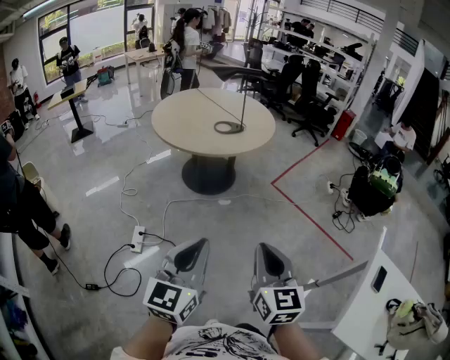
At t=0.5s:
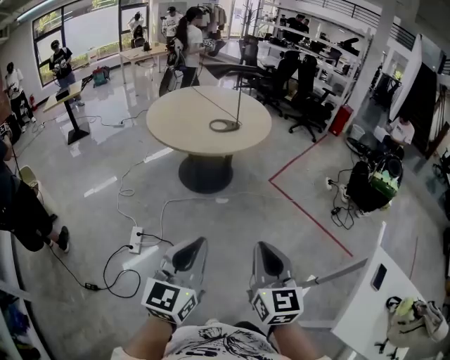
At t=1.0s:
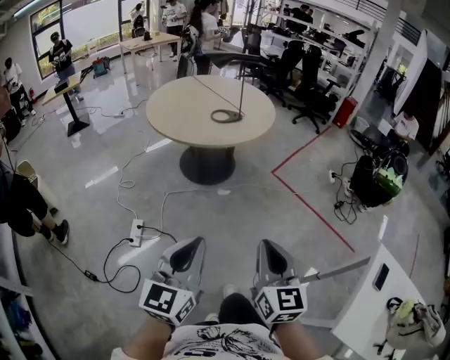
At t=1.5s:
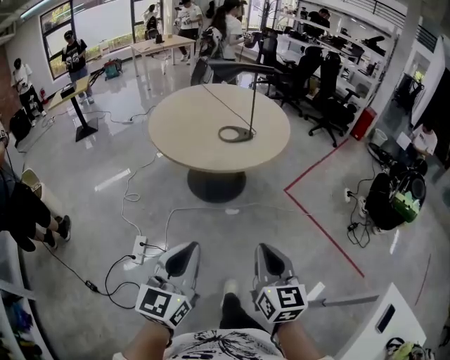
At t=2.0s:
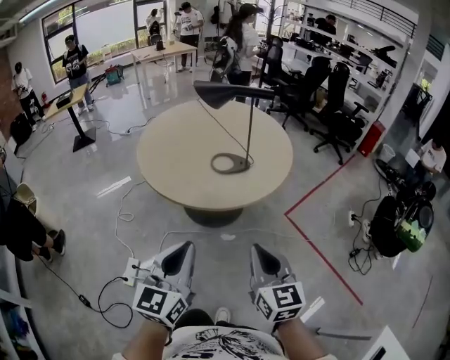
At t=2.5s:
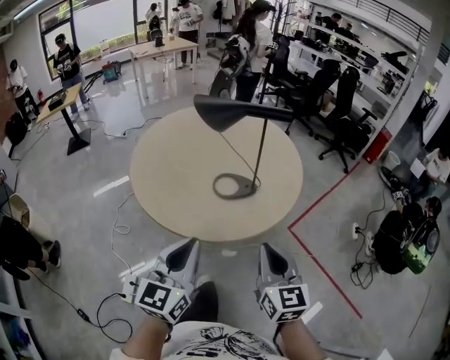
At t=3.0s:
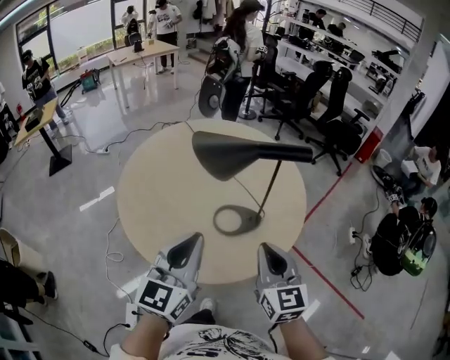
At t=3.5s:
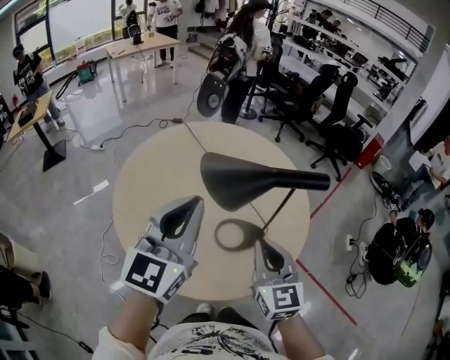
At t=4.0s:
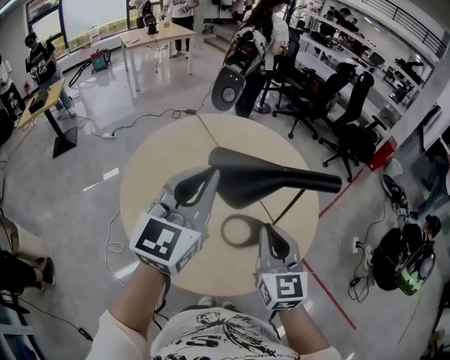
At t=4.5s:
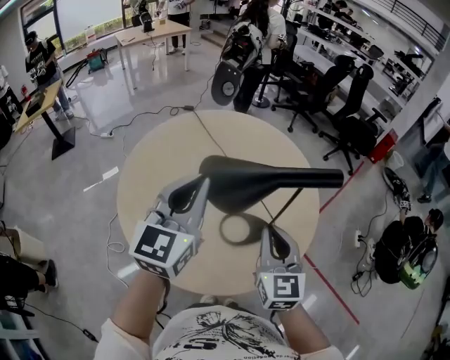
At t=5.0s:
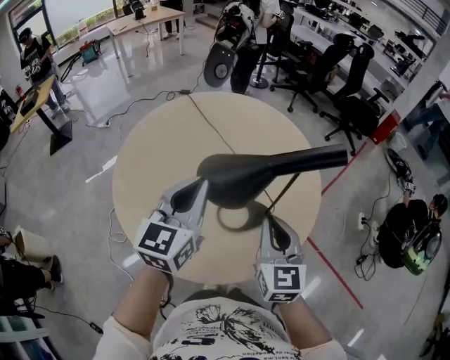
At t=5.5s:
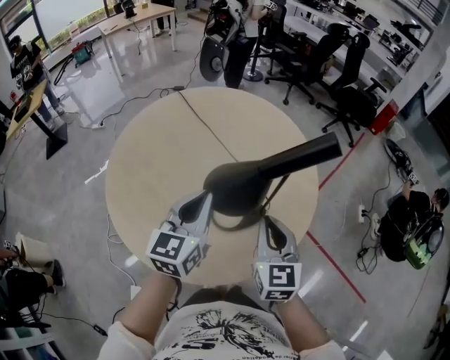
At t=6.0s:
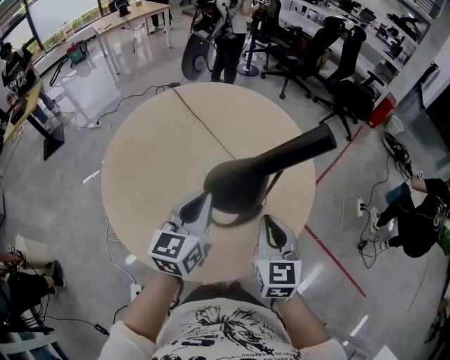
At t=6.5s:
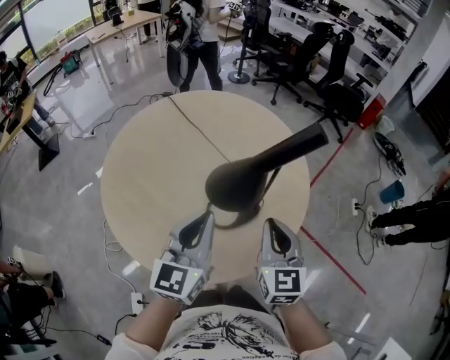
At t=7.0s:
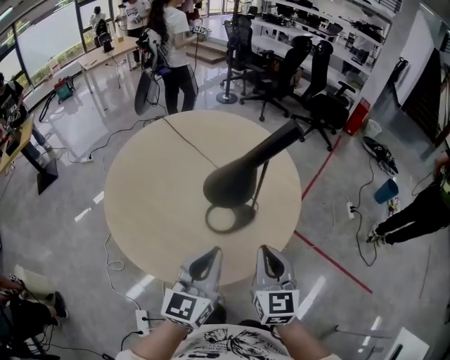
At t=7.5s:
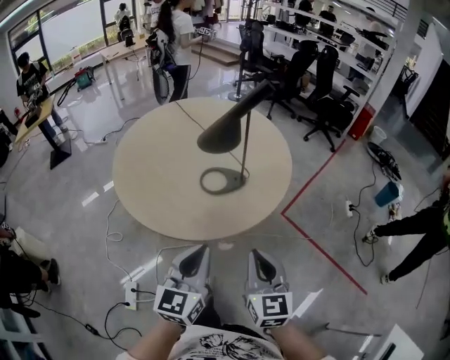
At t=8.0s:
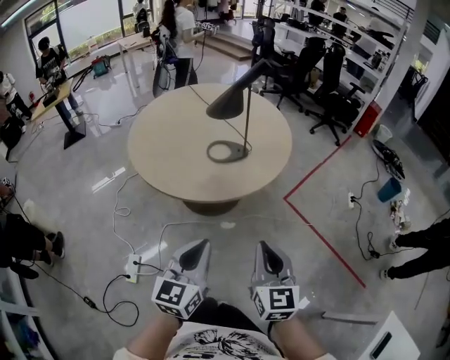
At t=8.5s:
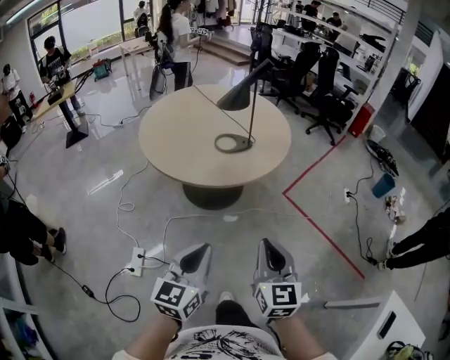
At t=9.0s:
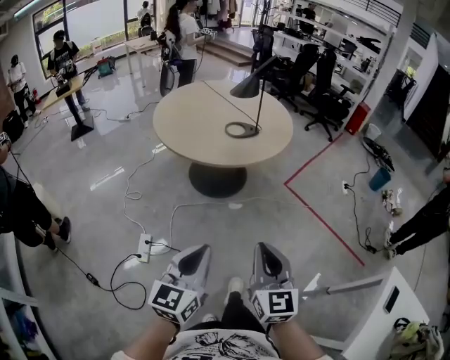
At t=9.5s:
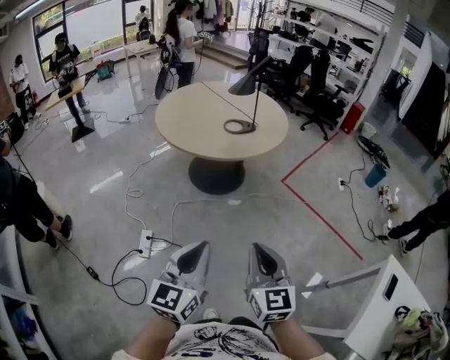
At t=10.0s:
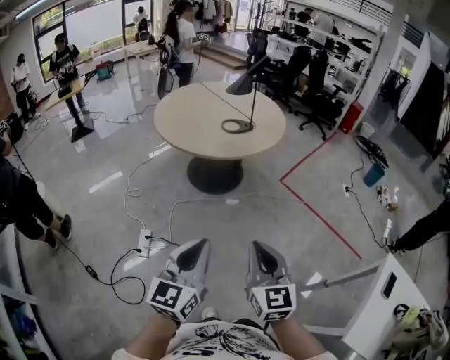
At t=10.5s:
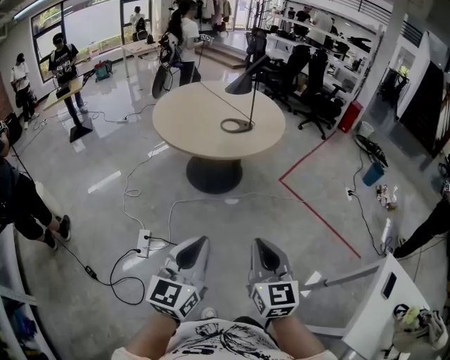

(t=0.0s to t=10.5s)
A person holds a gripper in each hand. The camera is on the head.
t=0.0s - t=2.0s: The grippers both shift forward by about 35 cm.
t=2.0s - t=4.0s: The grippers both shift forward by some 40 cm.
t=4.0s - t=6.5s: The left gripper heads downward and to the right, covering approximately 15 cm; the right gripper shifts some 5 cm to the right.
t=6.5s - t=8.5s: The two grippers travel together, backward, some 40 cm.
t=8.5s - t=10.5s: The two grippers go some 20 cm backward.

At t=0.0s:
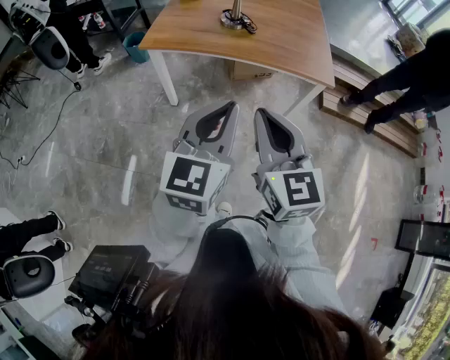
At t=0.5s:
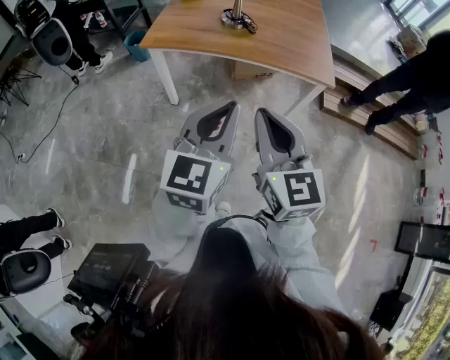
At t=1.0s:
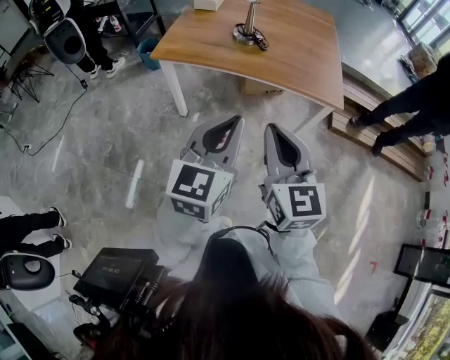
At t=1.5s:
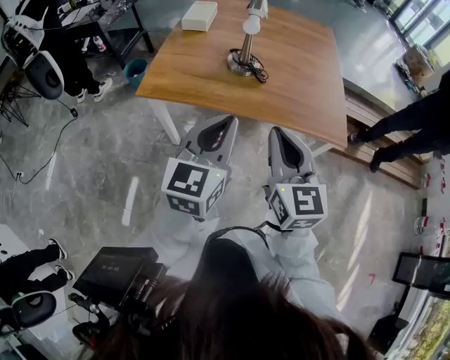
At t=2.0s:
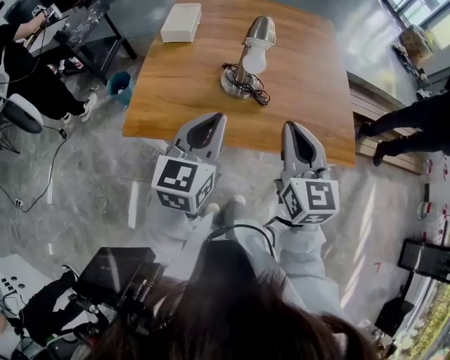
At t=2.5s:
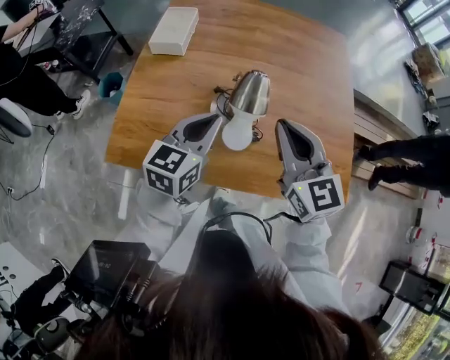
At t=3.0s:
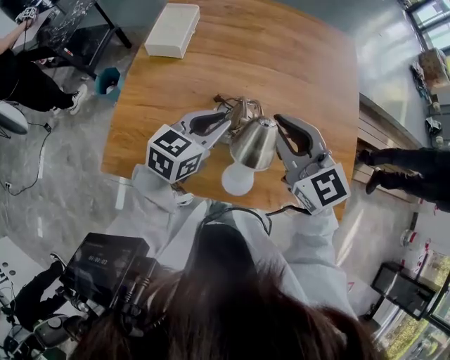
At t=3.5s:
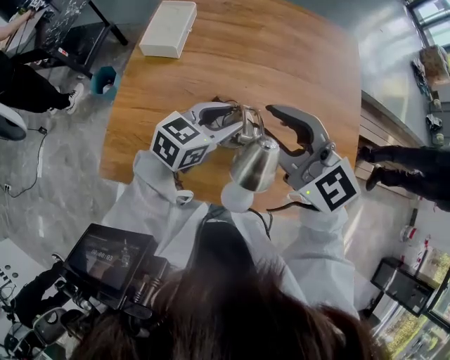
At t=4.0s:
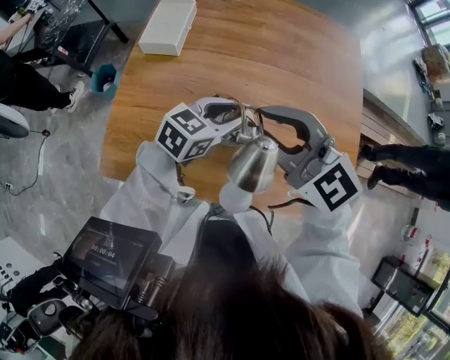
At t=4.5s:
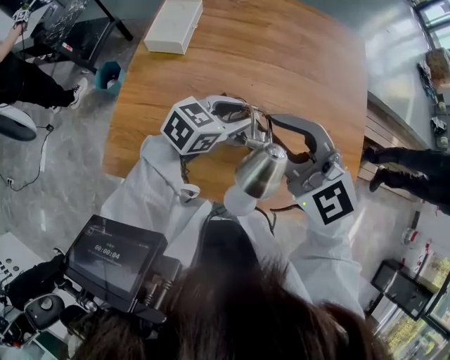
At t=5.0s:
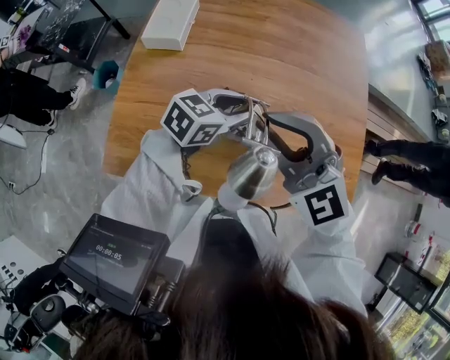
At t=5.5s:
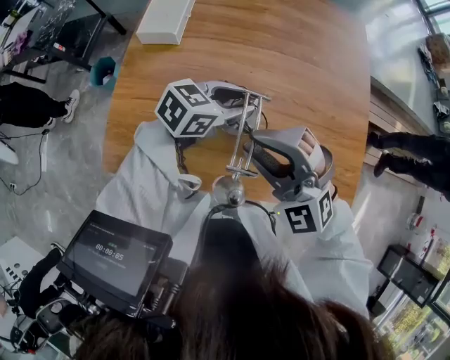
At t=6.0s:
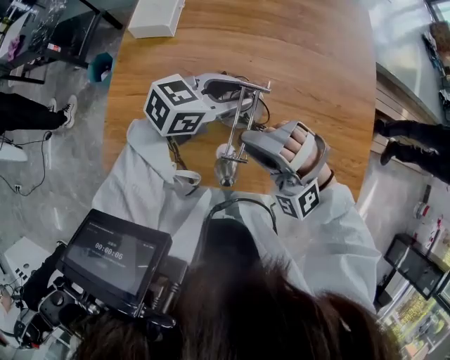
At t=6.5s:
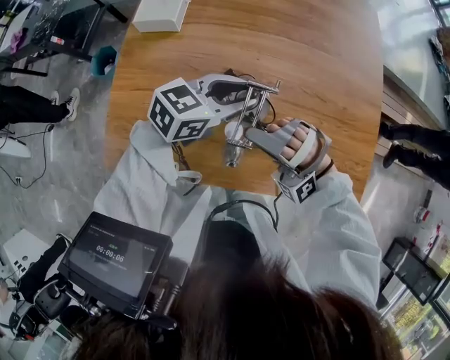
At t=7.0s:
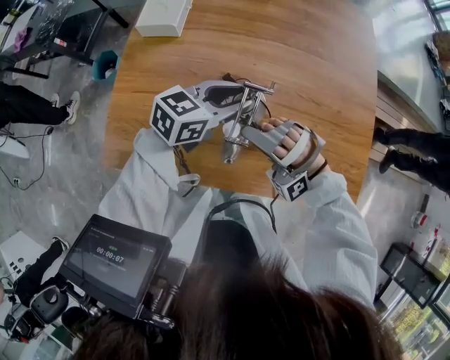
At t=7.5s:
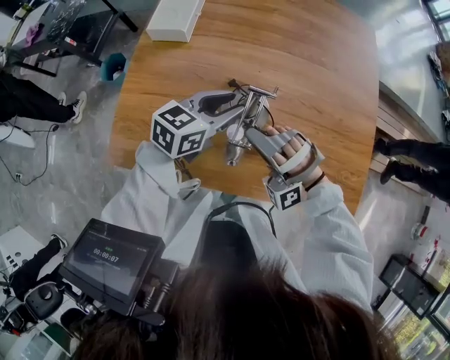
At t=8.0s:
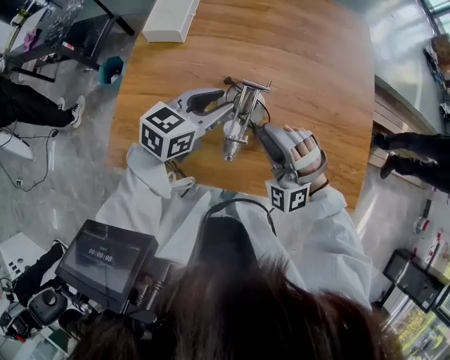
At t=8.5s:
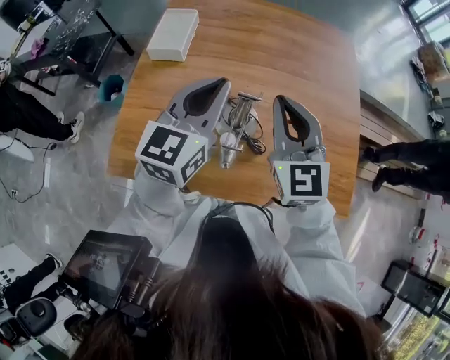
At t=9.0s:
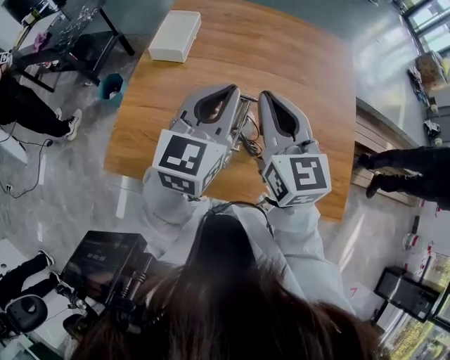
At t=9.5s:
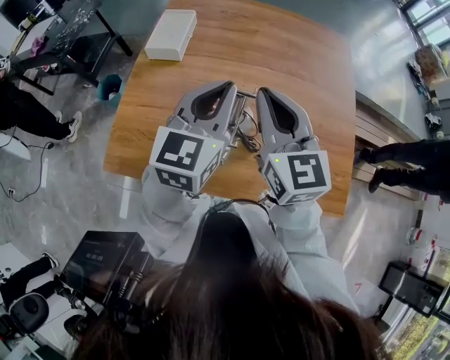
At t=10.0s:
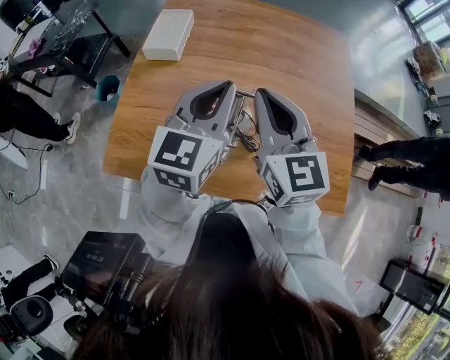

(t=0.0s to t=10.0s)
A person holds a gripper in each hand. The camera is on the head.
t=0.0s - t=2.0s: Both grippers are carried forward, about 50 cm.
t=2.0s - t=4.0s: The left gripper moves forward and downward, approximately 30 cm, swivels roughly 30 degrees, and opens up, while the right gripper moves forward, roughly 25 cm, and changes its angle by roughly 50 degrees.
t=4.0s - t=6.0s: The right gripper goes some 15 cm downward and backward, and twists some 50 degrees counterclockwise, seen from behind.
t=6.0s - t=8.0s: The right gripper moves roughly 5 cm, while the left gripper shifts by about 5 cm.
t=8.0s - t=10.0s: Both grippers move upward, some 15 cm. The right gripper rolls clockwise, seen from behind, by some 70 degrees, and closes; the left gripper turns by roughly 30 degrees, and closes its fingers.

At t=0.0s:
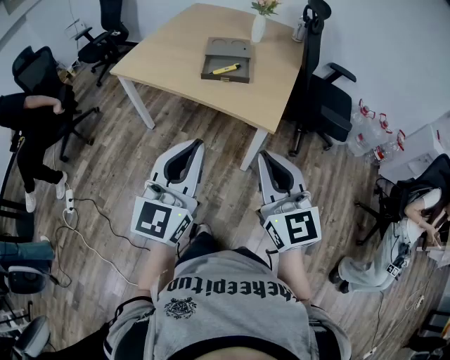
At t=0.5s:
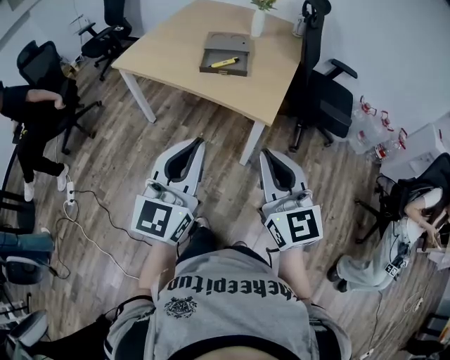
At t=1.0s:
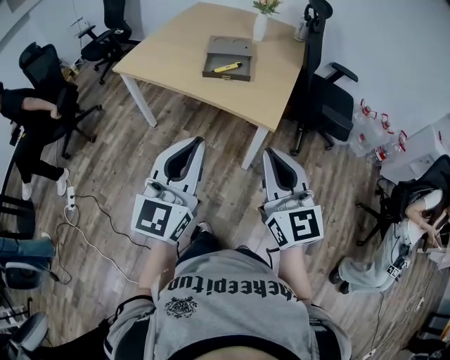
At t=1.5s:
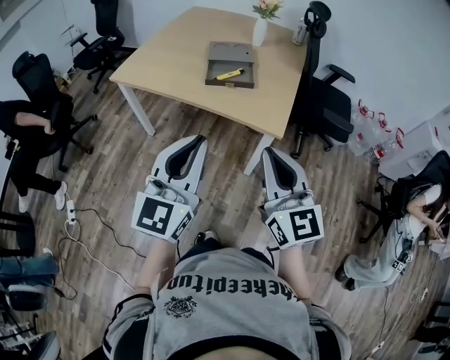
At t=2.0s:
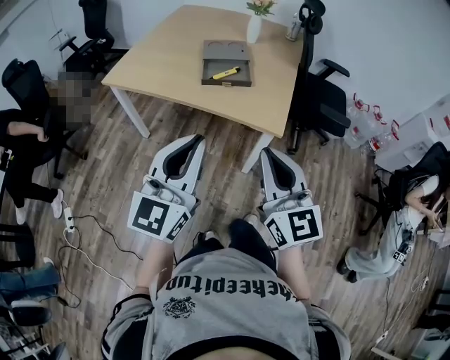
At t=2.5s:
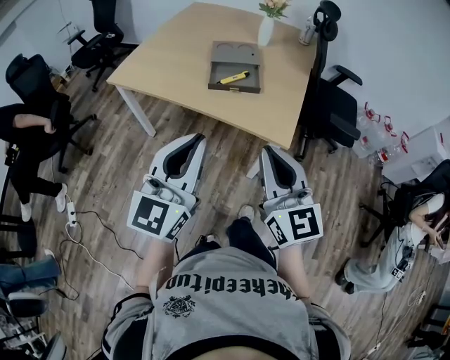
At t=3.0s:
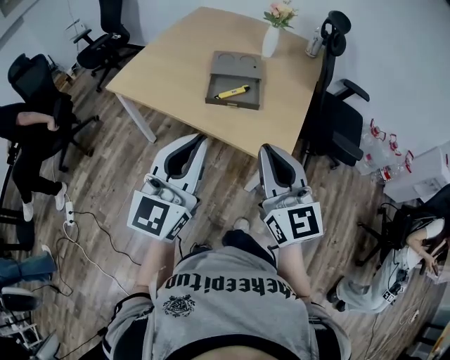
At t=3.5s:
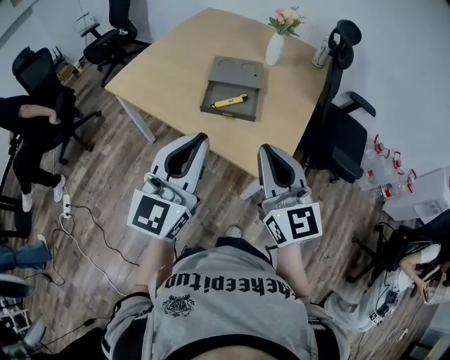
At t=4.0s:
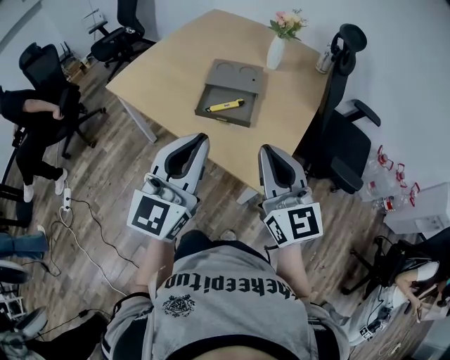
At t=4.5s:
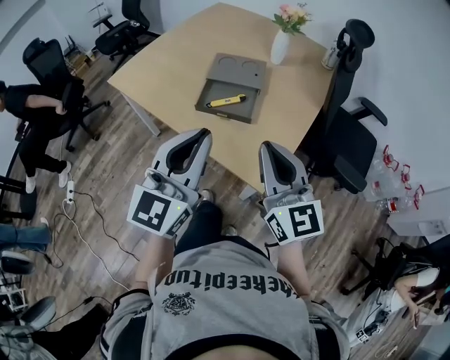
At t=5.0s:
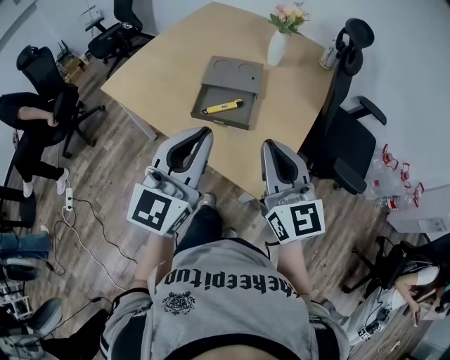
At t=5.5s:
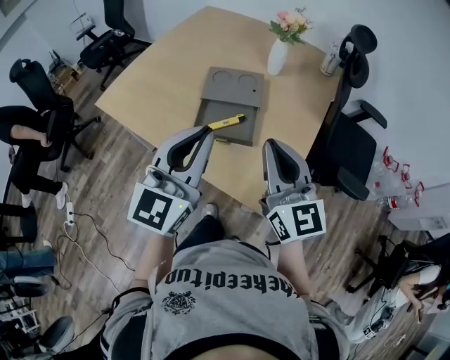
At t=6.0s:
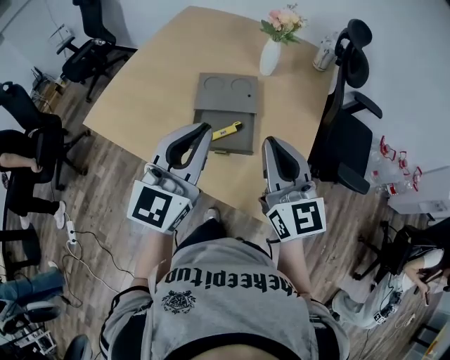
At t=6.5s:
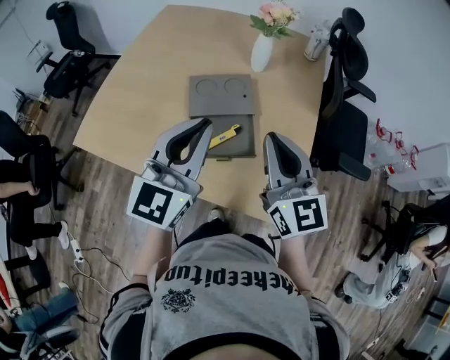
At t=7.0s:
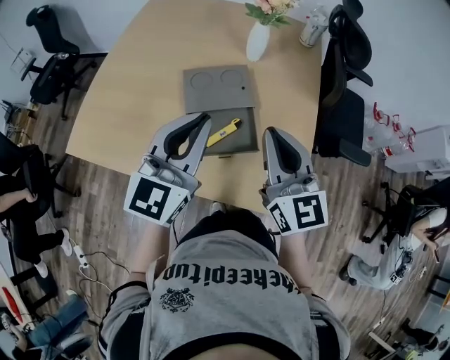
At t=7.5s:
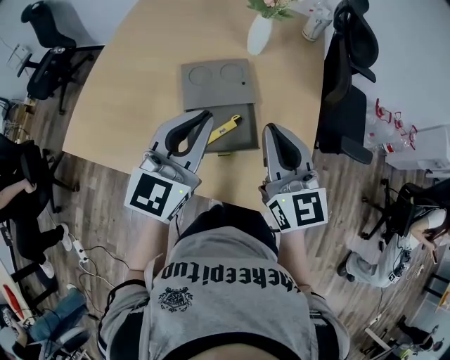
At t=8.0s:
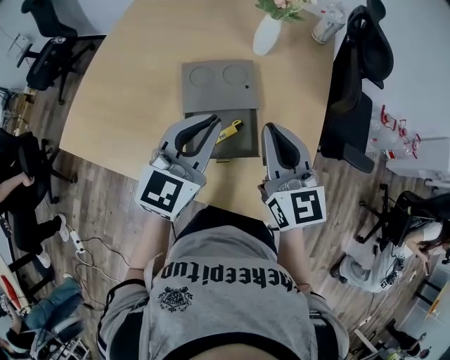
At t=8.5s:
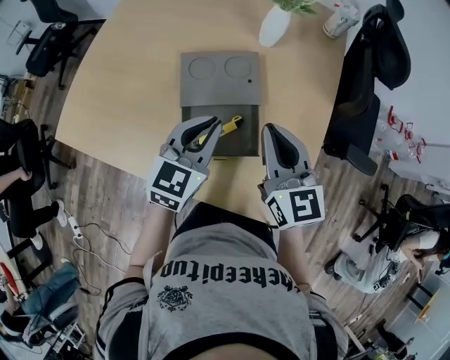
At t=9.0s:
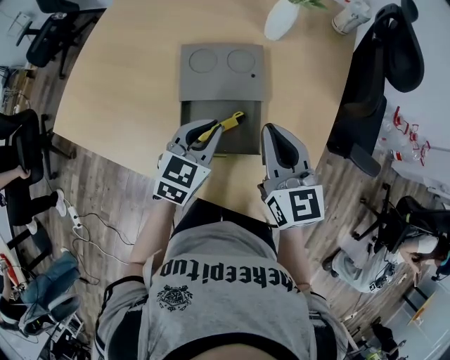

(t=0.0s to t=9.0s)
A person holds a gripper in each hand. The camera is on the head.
t=0.0s - t=2.0s: The left gripper shifts about 10 cm to the left and forward; the right gripper shifts about 5 cm to the left.
t=2.0s - t=4.5s: The two grippers go some 25 cm forward and to the right.
t=4.5s - t=7.0s: Both grippers travel together forward, some 25 cm. The right gripper turns by some 20 degrees. Meanwhile the left gripper changes its angle by about 20 degrees.
t=7.0s - t=9.0s: The left gripper goes approximately 20 cm downward, and angles its fingers downward, by some 30 degrees. The right gripper travels downward and forward by roughly 15 cm.
